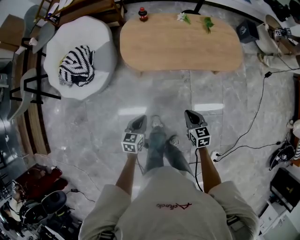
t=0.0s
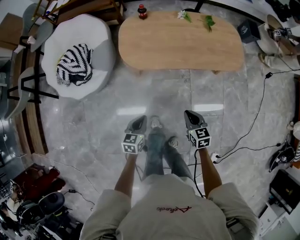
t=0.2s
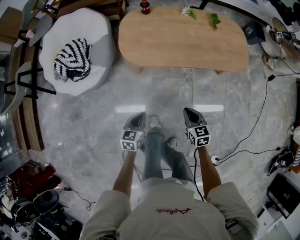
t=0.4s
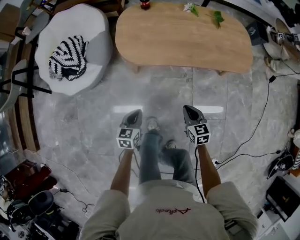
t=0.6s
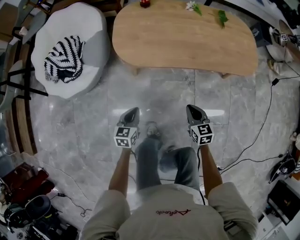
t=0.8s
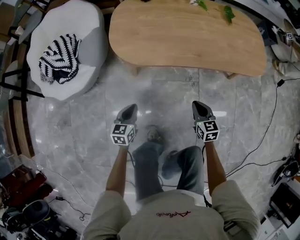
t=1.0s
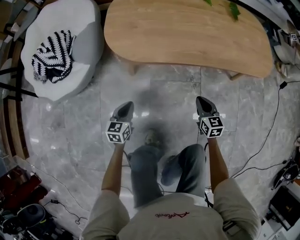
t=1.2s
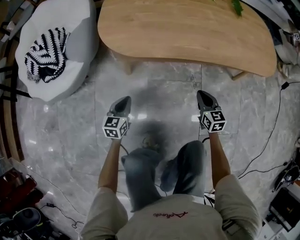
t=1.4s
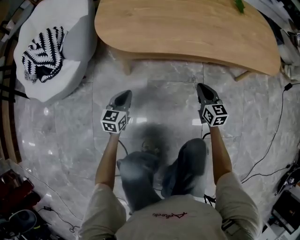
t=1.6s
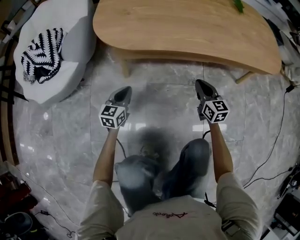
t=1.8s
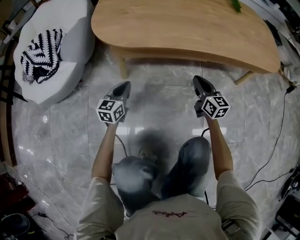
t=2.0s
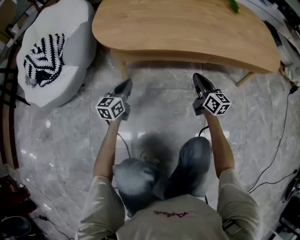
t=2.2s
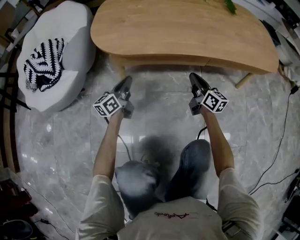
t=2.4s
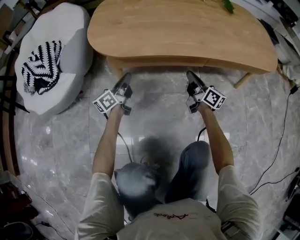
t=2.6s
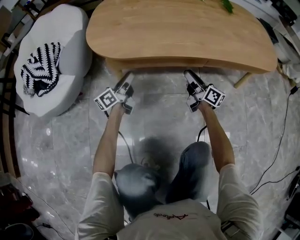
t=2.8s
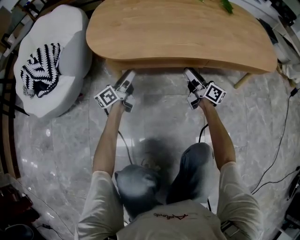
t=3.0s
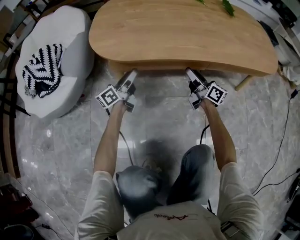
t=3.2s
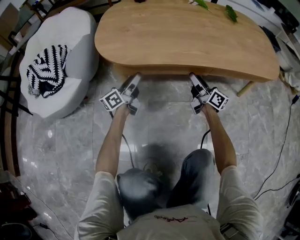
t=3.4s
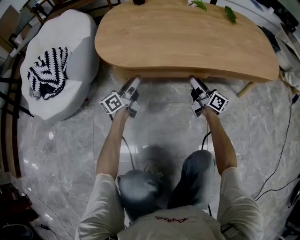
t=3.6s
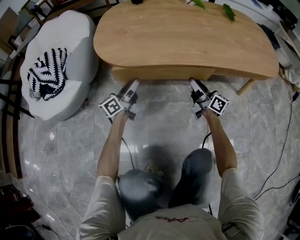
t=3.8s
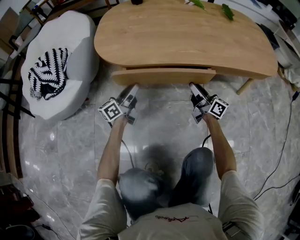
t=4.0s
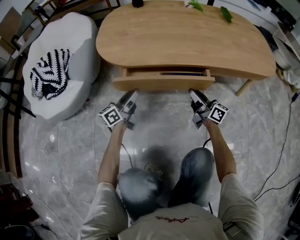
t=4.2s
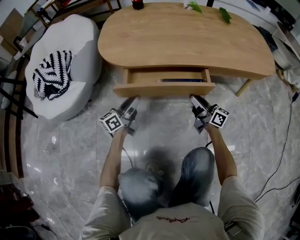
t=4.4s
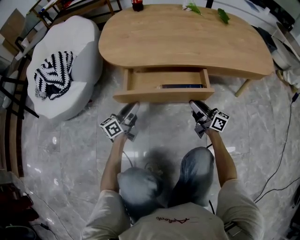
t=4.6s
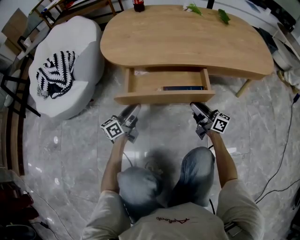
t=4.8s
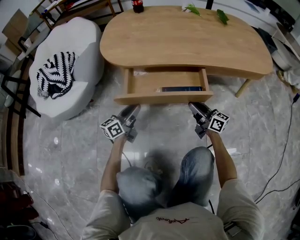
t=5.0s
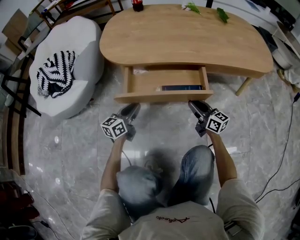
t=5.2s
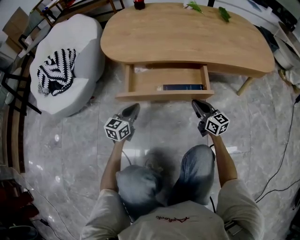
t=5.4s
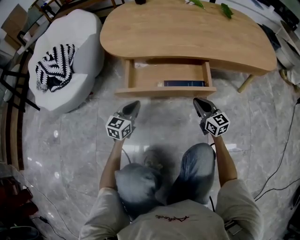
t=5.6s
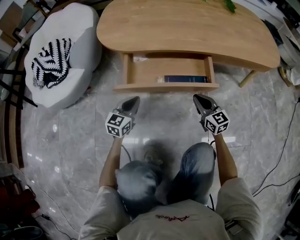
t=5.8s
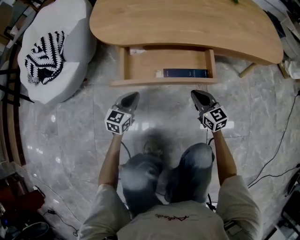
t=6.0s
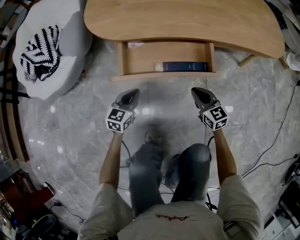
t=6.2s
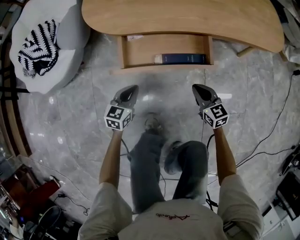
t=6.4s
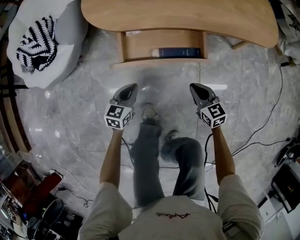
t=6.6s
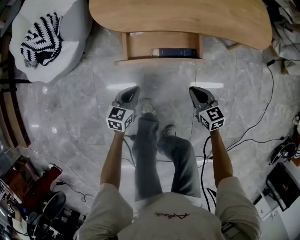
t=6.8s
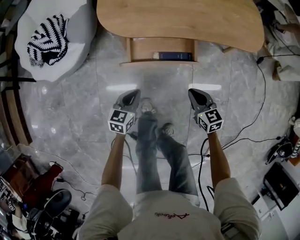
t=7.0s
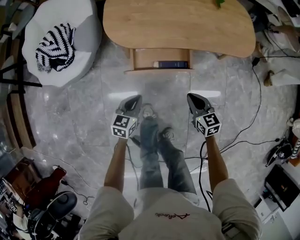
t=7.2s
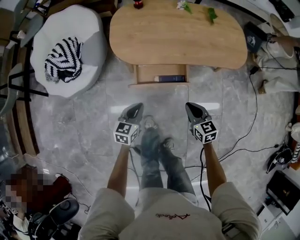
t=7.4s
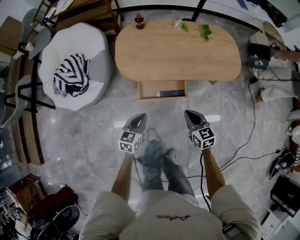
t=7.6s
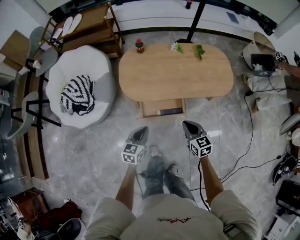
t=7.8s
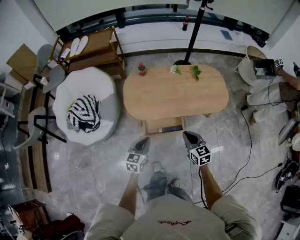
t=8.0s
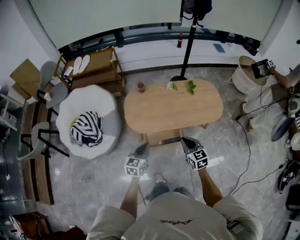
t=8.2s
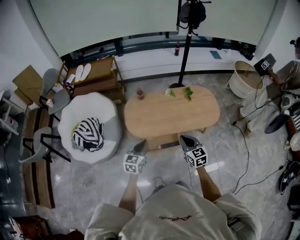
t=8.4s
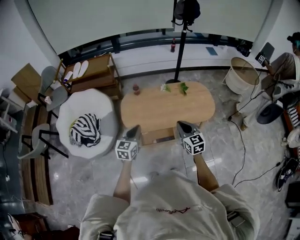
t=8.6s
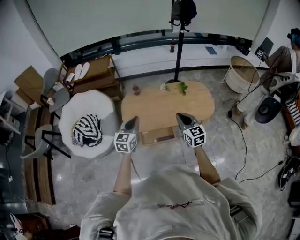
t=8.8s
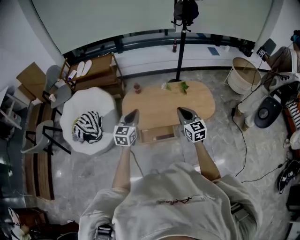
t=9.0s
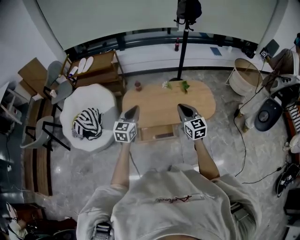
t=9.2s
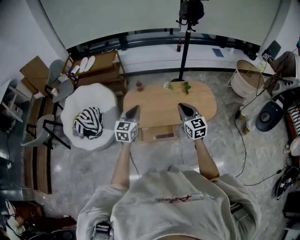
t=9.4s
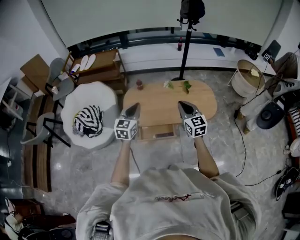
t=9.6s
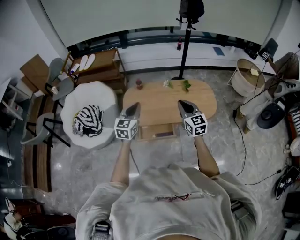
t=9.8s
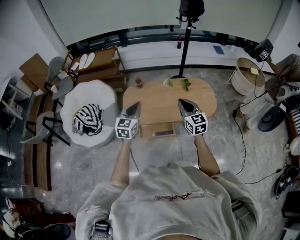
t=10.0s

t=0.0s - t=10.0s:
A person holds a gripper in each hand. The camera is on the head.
t=0.0s - t=1.4s: The grippers both shift downward by about 40 cm.
t=1.4s - t=2.8s: Both grippers travel together forward, roughly 15 cm. The left gripper angles its fingers upward, by some 30 degrees, and opens its fingers. Meanwhile the right gripper tips its fingers upward by approximately 30 degrees, and opens.
t=2.8s - t=4.2s: Both grippers travel together backward, roughly 5 cm.
t=4.2s - t=5.8s: Both grippers travel together backward, approximately 10 cm. The left gripper swivels about 50 degrees, and closes up. Meanwhile the right gripper changes its angle by roughly 50 degrees, and closes its fingers.
t=5.8s - t=7.2s: The grippers both shift upward by roughly 30 cm. The right gripper rotates approximately 20 degrees.
t=7.2s - t=8.6s: The two grippers go roughly 50 cm upward. The right gripper turns by roughly 30 degrees. Meanwhile the left gripper rotates roughly 20 degrees.
t=8.6s - t=10.0s: The left gripper goes roughly 10 cm upward and to the right; the right gripper shifts approximately 5 cm upward.

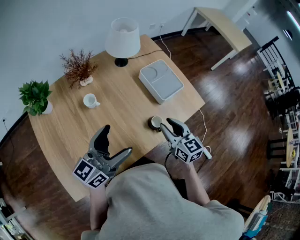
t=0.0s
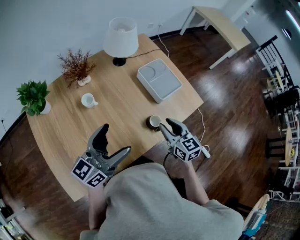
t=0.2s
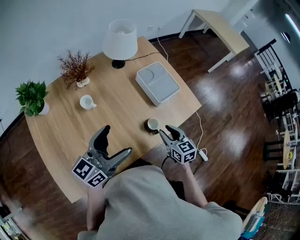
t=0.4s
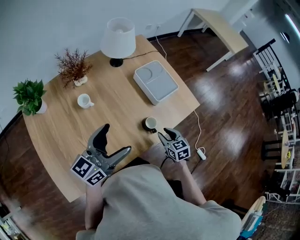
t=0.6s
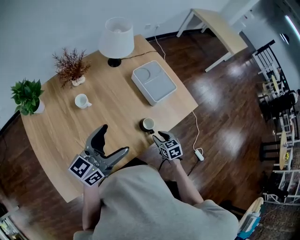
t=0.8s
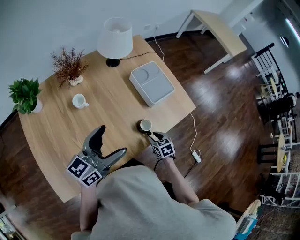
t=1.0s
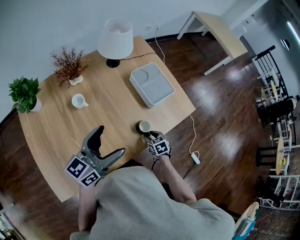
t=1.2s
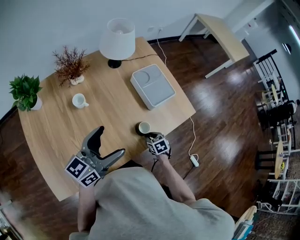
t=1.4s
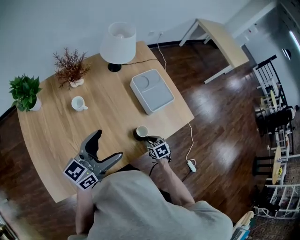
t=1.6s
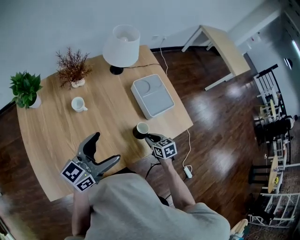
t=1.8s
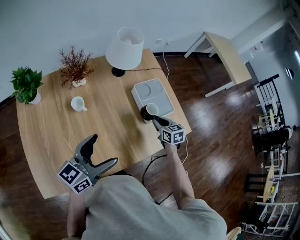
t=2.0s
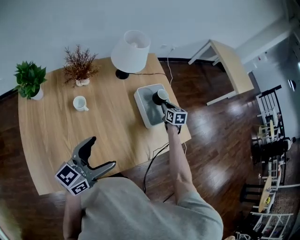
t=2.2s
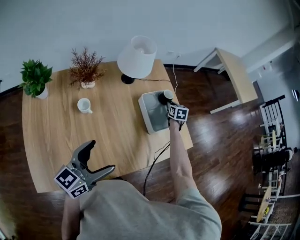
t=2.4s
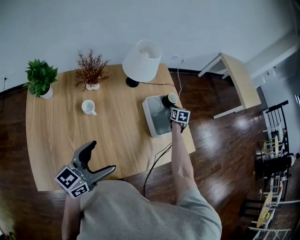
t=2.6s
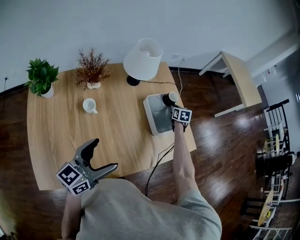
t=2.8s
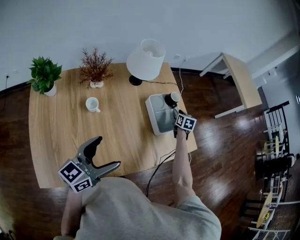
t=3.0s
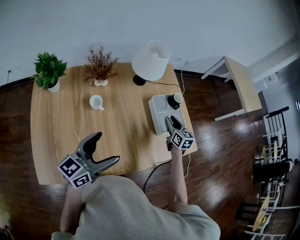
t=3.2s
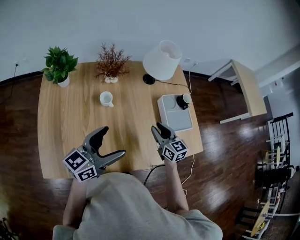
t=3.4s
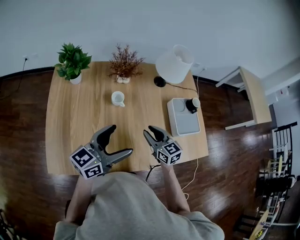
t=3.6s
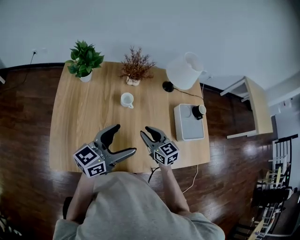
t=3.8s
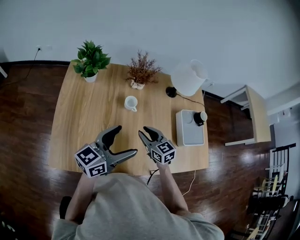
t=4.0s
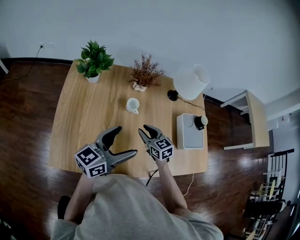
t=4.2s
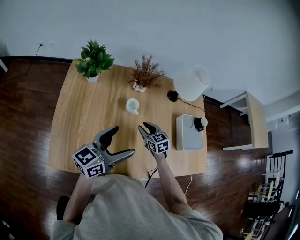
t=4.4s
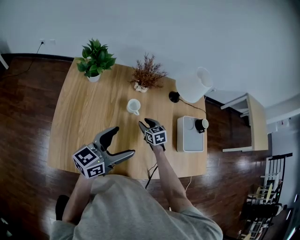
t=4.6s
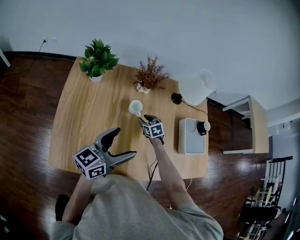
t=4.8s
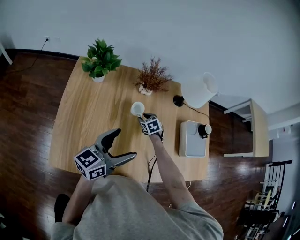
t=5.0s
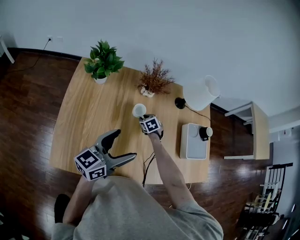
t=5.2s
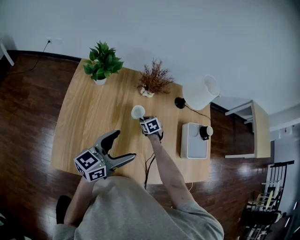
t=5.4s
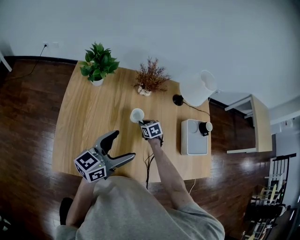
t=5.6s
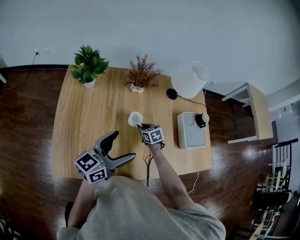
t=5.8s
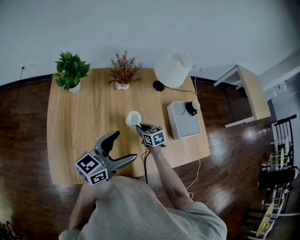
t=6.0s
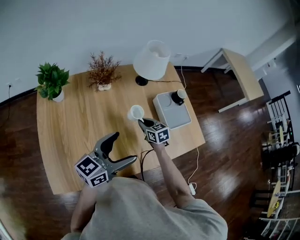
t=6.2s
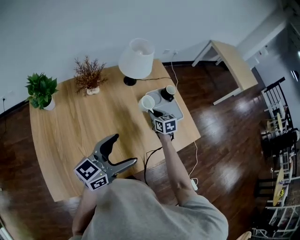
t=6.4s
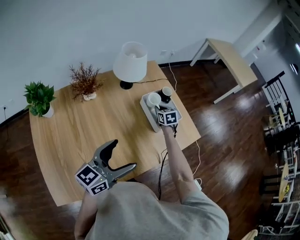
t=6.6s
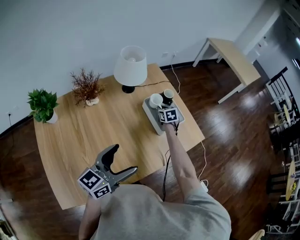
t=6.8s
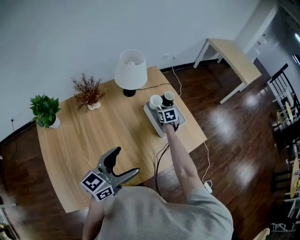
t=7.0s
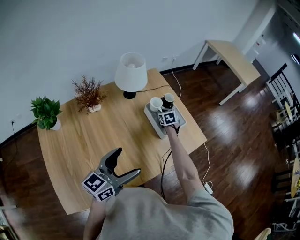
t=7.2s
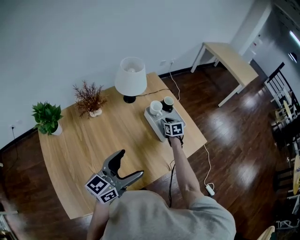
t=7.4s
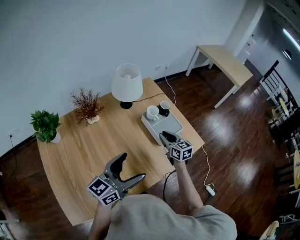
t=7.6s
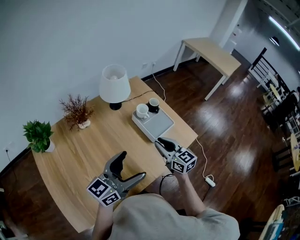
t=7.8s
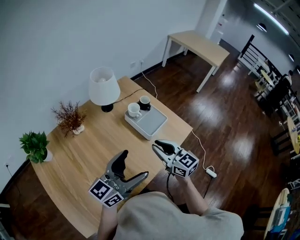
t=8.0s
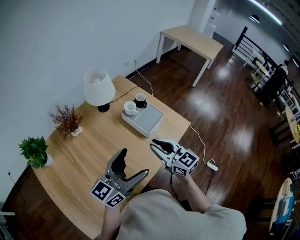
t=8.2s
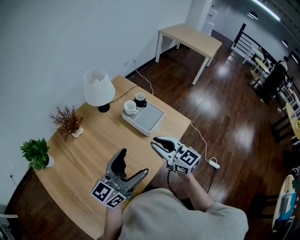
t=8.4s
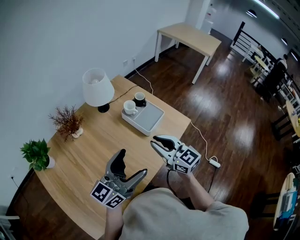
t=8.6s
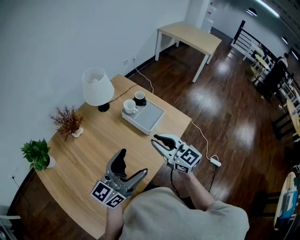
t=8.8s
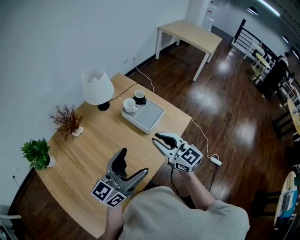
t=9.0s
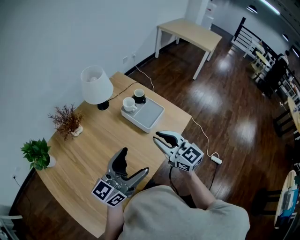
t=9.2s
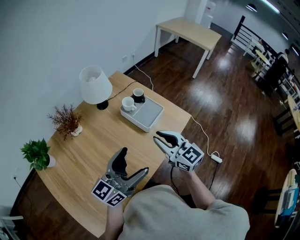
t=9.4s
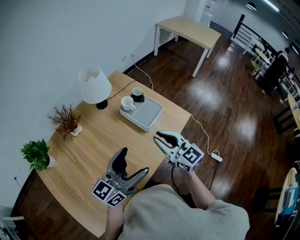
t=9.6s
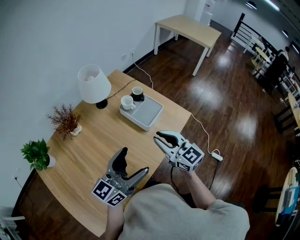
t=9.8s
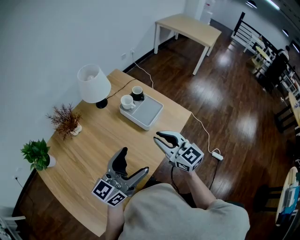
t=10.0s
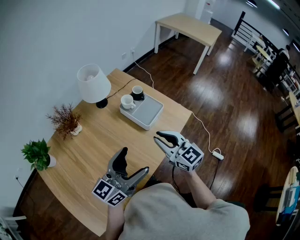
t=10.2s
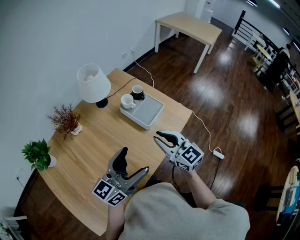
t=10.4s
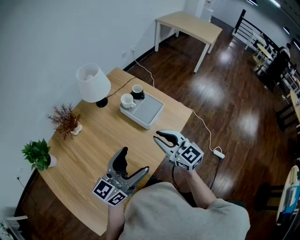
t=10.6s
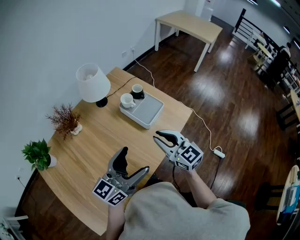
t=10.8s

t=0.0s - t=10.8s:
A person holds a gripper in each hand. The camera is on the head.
t=0.0s - t=1.6s: The right gripper heads downward, covering approximately 25 cm, and points its fingers roughly 40 degrees further downward.
t=1.6s - t=3.0s: The right gripper shifts some 35 cm forward, turns by some 30 degrees, and opens up.
t=3.0s - t=4.6s: The left gripper shifts by approximately 15 cm; the right gripper moves roughly 10 cm upward and comes back, and changes its angle by roughly 50 degrees.
t=4.6s - t=6.2s: Both grippers travel together to the right, approximately 10 cm. The right gripper closes up.
t=6.2s - t=7.8s: The right gripper moves upward and to the right, some 25 cm, goes forward and returns, some 20 cm each way, and turns by approximately 30 degrees, while the left gripper travels to the right by approximately 10 cm.
t=7.8s - t=9.2s: The right gripper travels upward and backward by about 10 cm.
t=9.2s - t=10.8s: There are only small adjustments of the grippers.

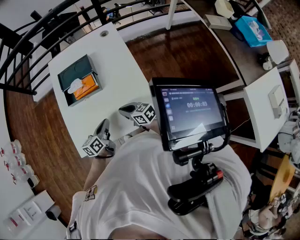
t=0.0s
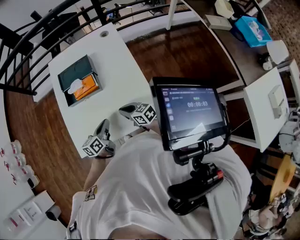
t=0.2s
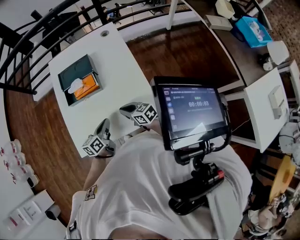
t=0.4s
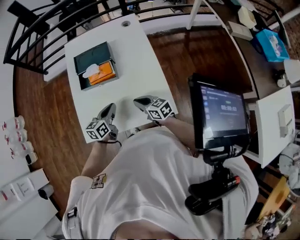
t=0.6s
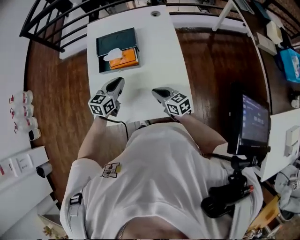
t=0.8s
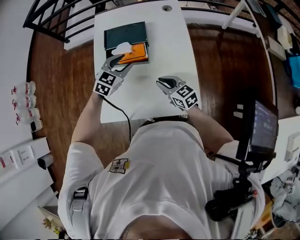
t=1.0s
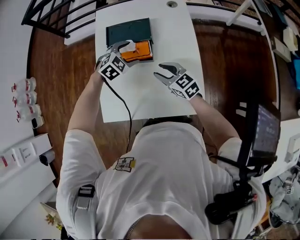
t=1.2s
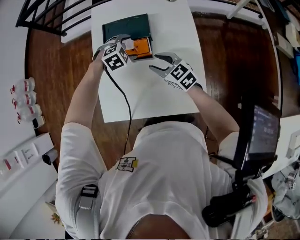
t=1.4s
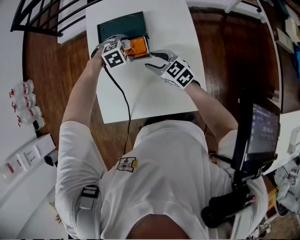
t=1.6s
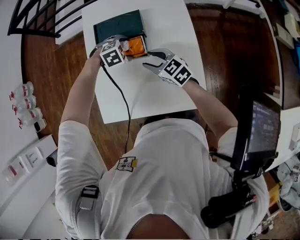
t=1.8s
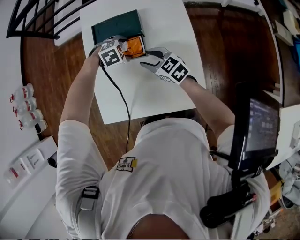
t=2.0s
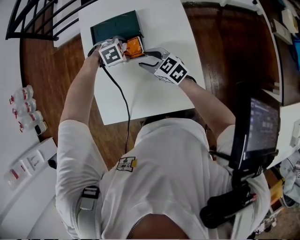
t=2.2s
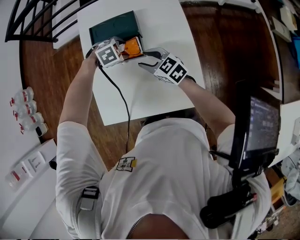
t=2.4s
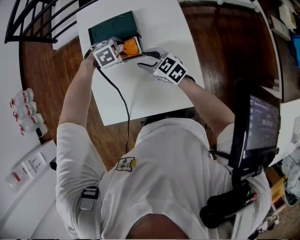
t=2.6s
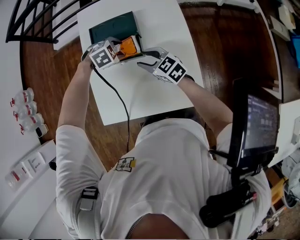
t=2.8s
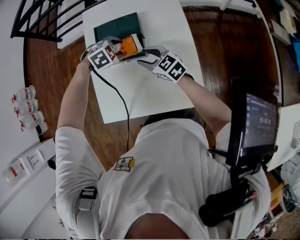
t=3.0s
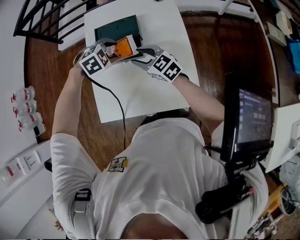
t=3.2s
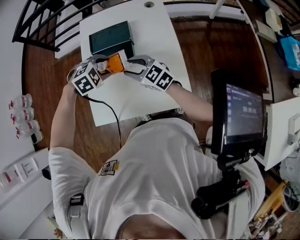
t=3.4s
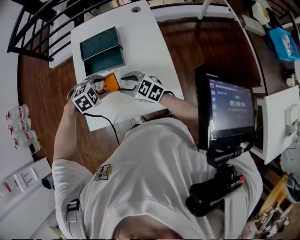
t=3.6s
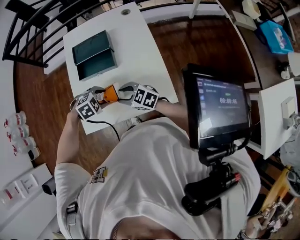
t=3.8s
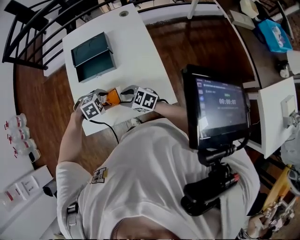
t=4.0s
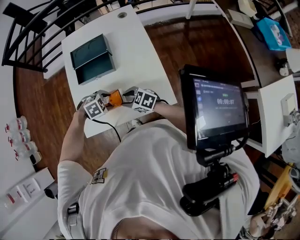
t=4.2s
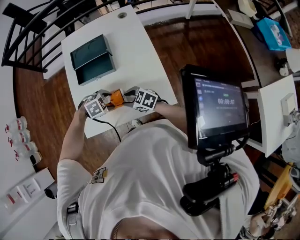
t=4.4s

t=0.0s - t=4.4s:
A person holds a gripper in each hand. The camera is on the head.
t=0.0s - t=1.4s: The right gripper heads forward, covering some 15 cm, rotates about 30 degrees, and opens its fingers. Meanwhile the left gripper heads forward, covering some 25 cm, twists some 80 degrees clockwise, seen from behind, and opens its fingers.
t=1.4s - t=3.0s: The left gripper closes.
t=3.0s - t=4.4s: The left gripper ends up some 25 cm from where it was. Meanwhile the right gripper shifts by roughly 20 cm.
